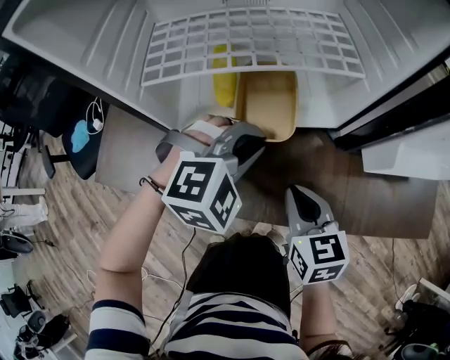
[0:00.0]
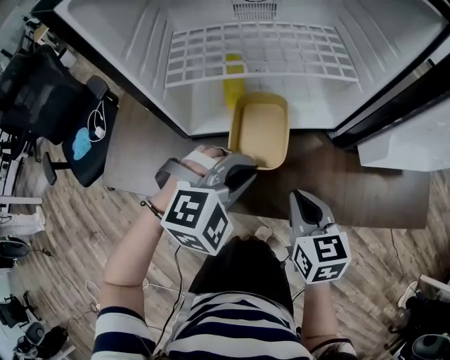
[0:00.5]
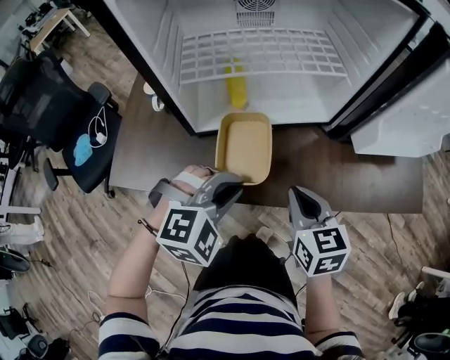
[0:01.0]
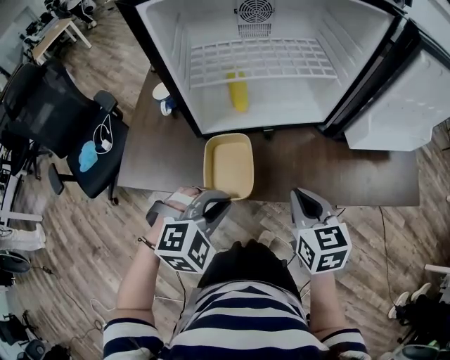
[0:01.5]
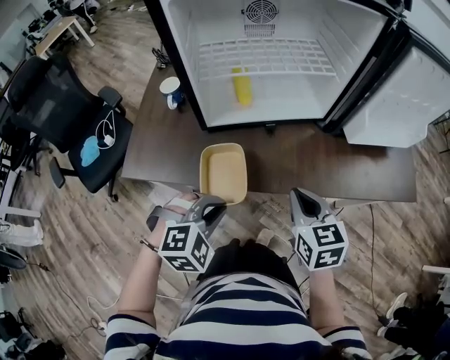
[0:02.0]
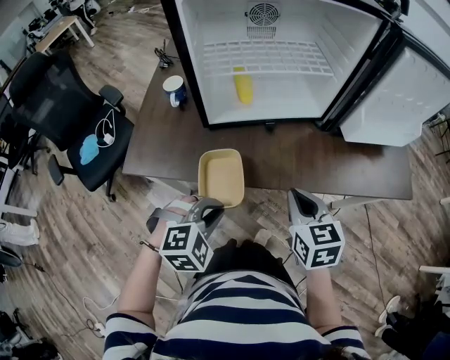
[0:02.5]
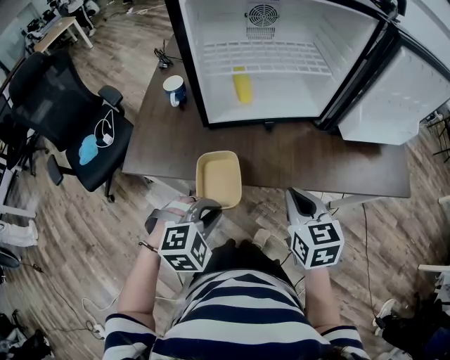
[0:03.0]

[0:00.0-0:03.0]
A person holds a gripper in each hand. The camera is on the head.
0:00.0 to 0:01.5: The left gripper moves backward and to the left, about 25 cm. The right gripper travels backward and upward by approximately 10 cm.
0:01.5 to 0:03.0: Both grippers move backward, roughly 5 cm.

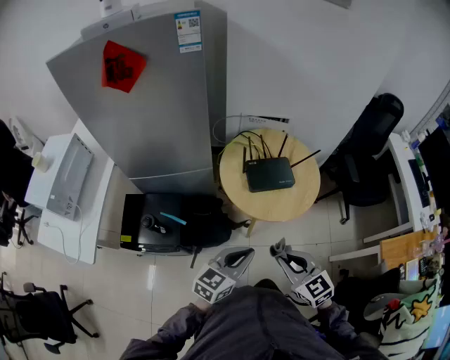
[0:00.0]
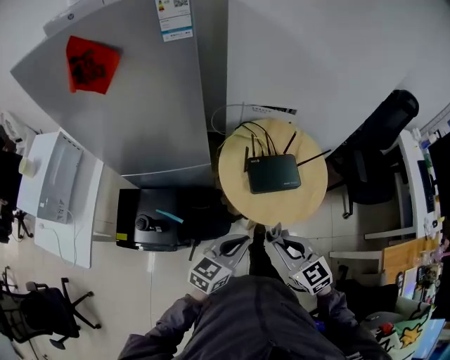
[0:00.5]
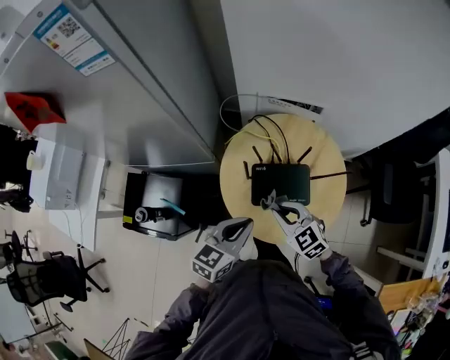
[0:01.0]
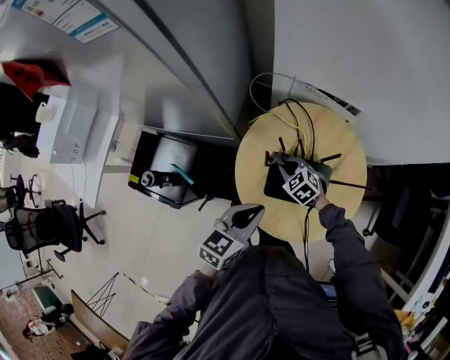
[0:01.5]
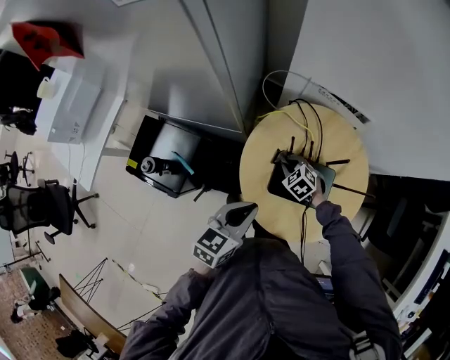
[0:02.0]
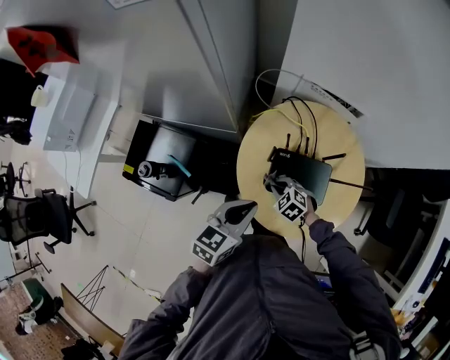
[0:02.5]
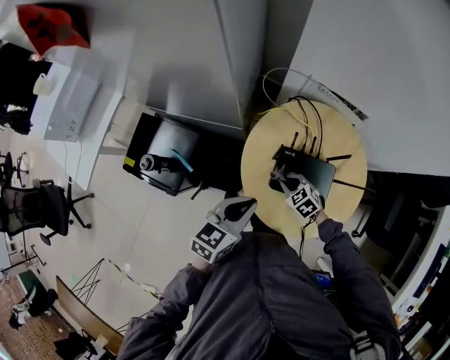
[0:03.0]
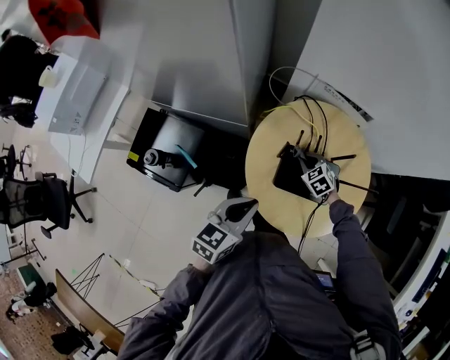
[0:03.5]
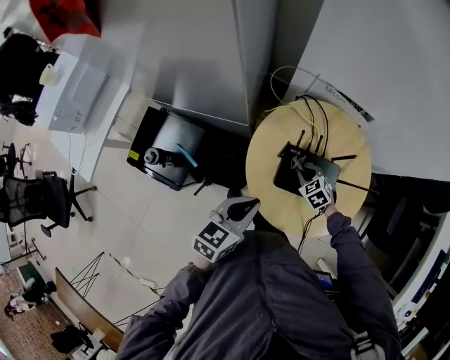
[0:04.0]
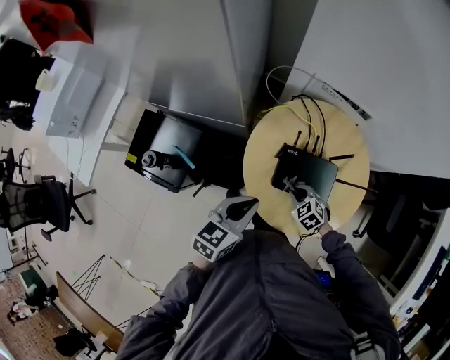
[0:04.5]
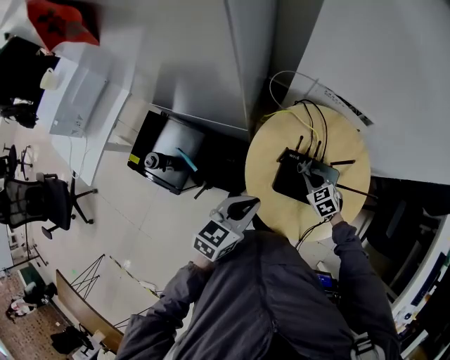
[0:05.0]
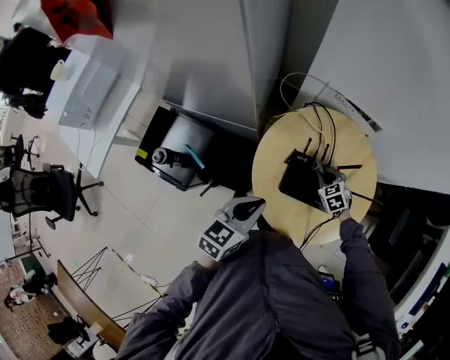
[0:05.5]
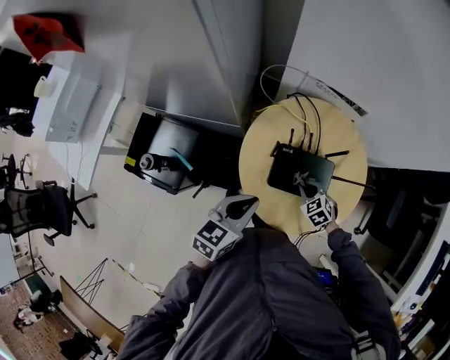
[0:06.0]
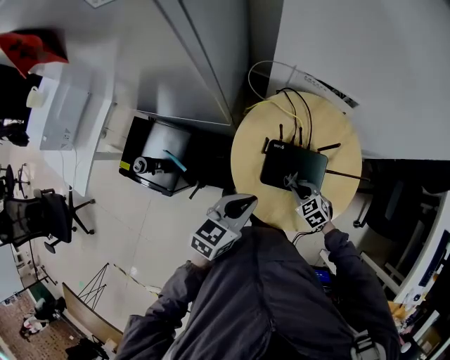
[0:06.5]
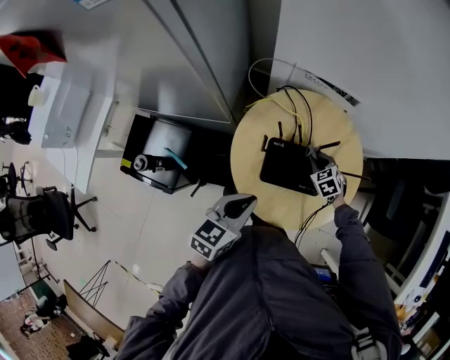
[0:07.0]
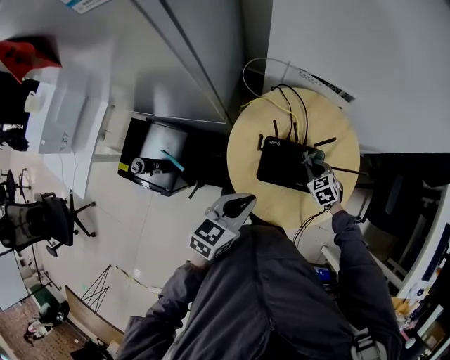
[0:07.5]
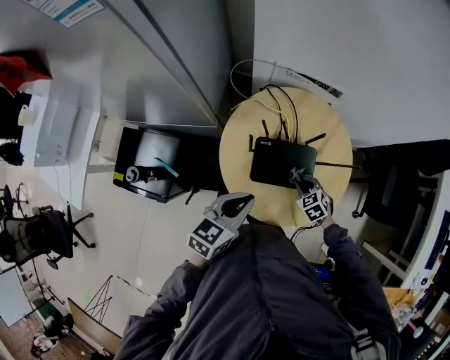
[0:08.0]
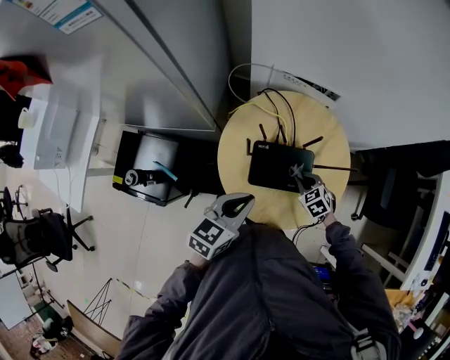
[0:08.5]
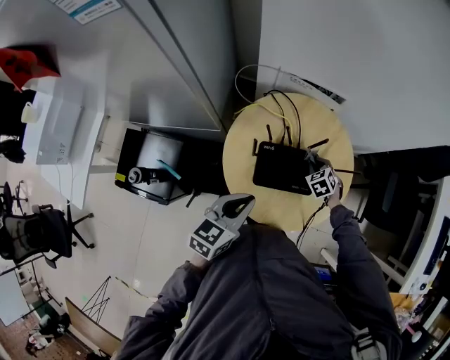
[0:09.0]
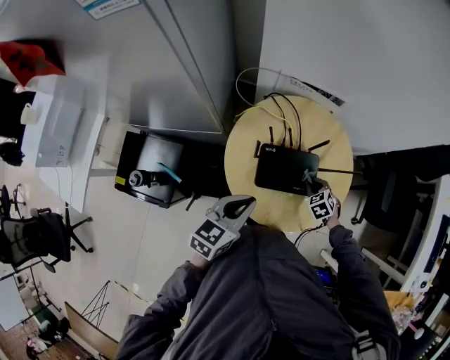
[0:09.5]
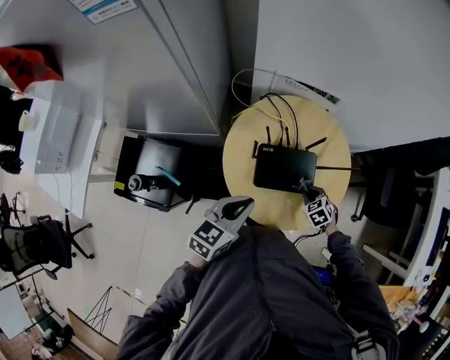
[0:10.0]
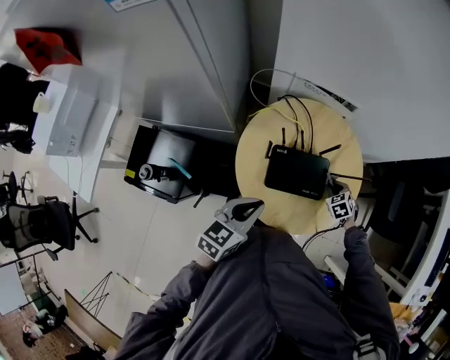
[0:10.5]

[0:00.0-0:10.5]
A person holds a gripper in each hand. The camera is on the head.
0:00.0 to 0:02.0: The right gripper ends up roughly 50 cm from where it was, and tilts its fingers some 30 degrees downward, while the left gripper ends up some 30 cm from where it was, and changes its angle by roughly 30 degrees.
0:02.0 to 0:04.0: The right gripper moves forward and backward over approximately 10 cm, changing direction 2 times.
0:04.0 to 0:06.5: The right gripper swings forward and backward, approximately 10 cm each way, with 2 reversals.
0:06.5 to 0:08.5: The right gripper goes some 5 cm to the right, and reaches approximately 10 cm forward, then returns.
0:08.5 to 0:10.5: The right gripper goes forward and backward, roughly 10 cm each way, reversing 2 times.

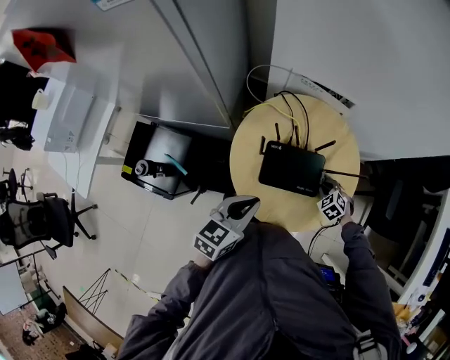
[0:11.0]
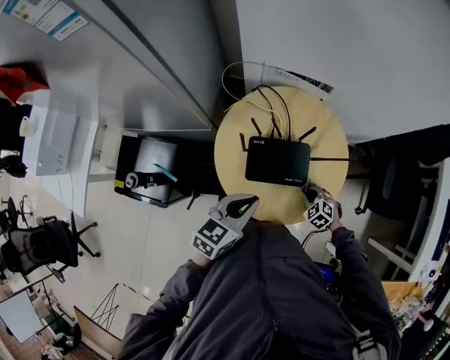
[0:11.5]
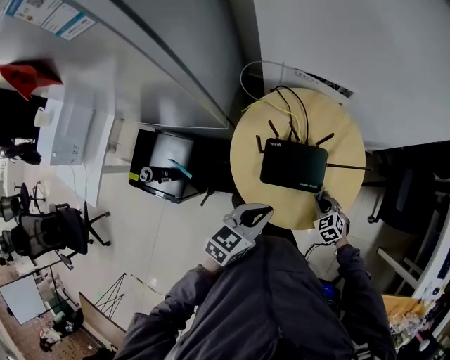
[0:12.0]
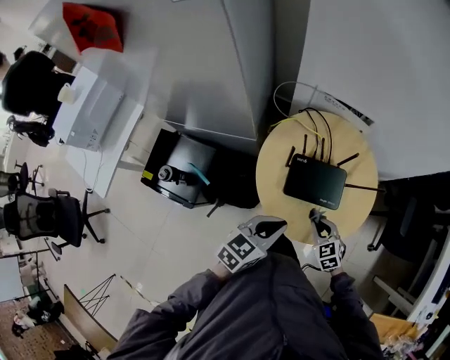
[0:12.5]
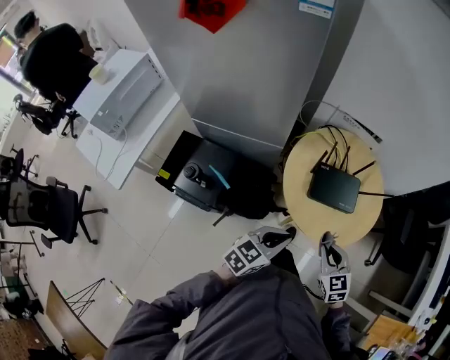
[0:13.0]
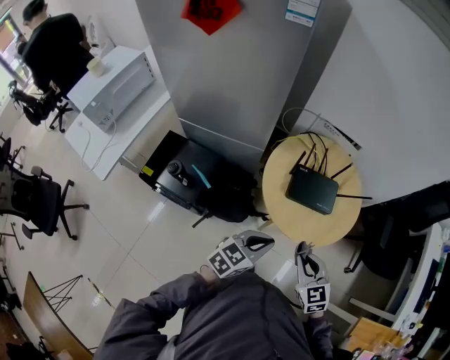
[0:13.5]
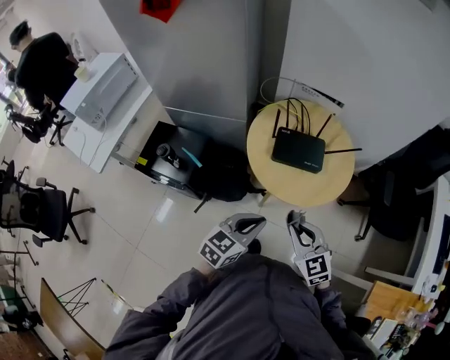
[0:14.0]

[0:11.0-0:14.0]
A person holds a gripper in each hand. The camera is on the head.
0:11.0 to 0:12.5: The right gripper moves backward, to the left and upward, roughly 20 cm, and changes its angle by roughly 20 degrees.
0:12.5 to 0:14.0: The right gripper heads backward and upward, covering approximately 25 cm, and swivels roughly 20 degrees. Meanwhile the left gripper goes approximately 15 cm backward.

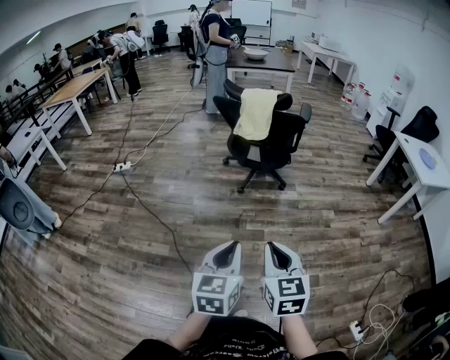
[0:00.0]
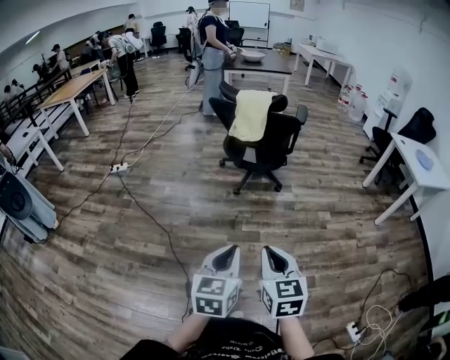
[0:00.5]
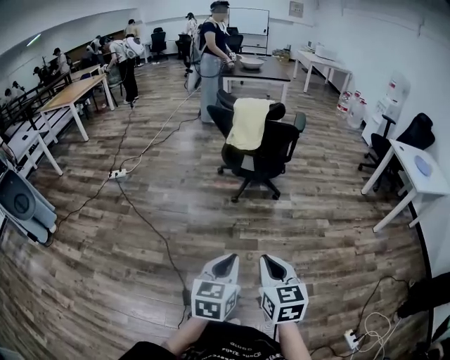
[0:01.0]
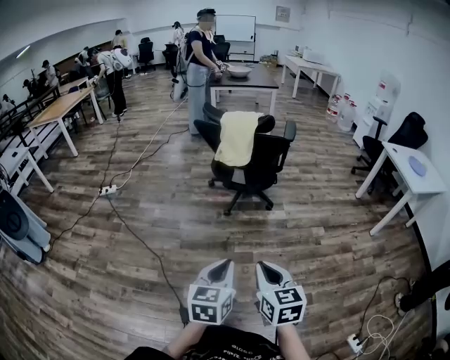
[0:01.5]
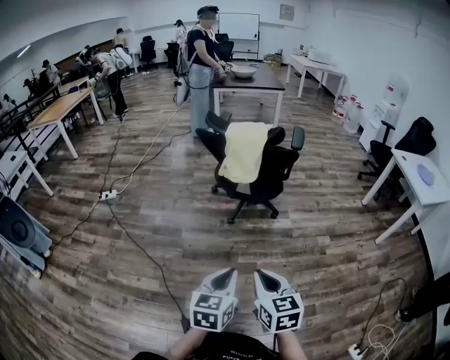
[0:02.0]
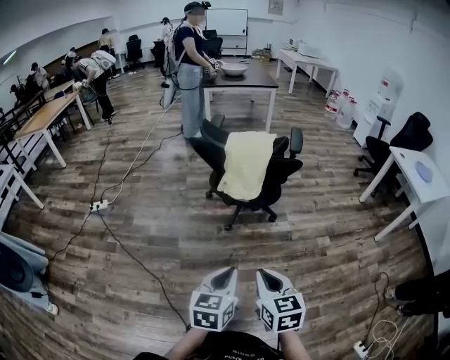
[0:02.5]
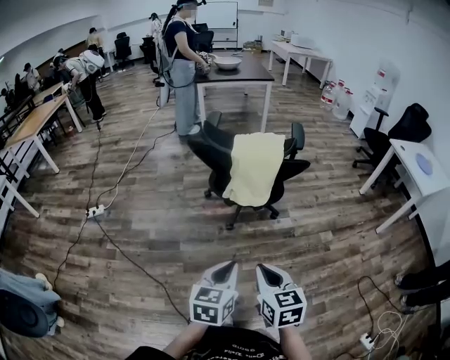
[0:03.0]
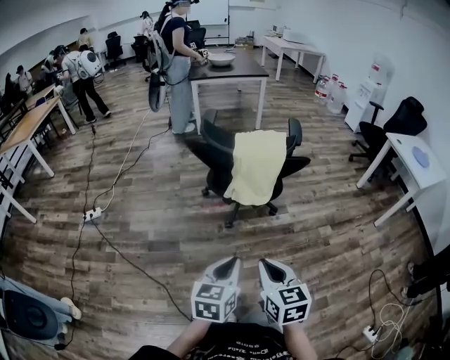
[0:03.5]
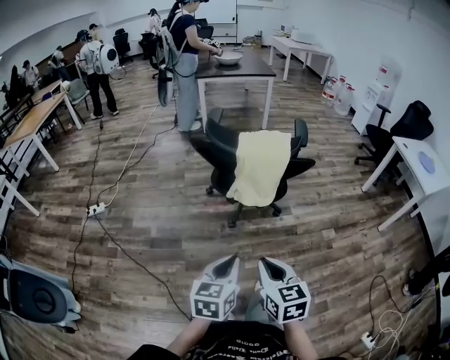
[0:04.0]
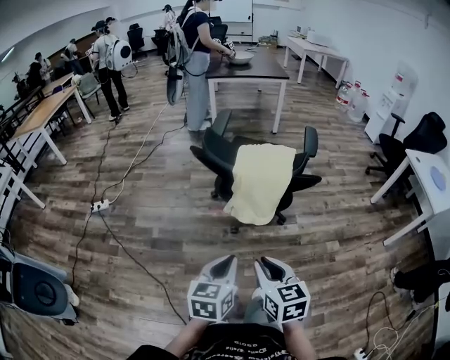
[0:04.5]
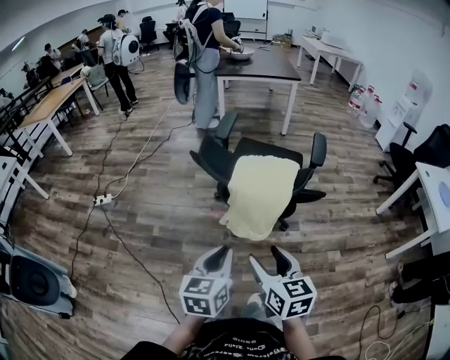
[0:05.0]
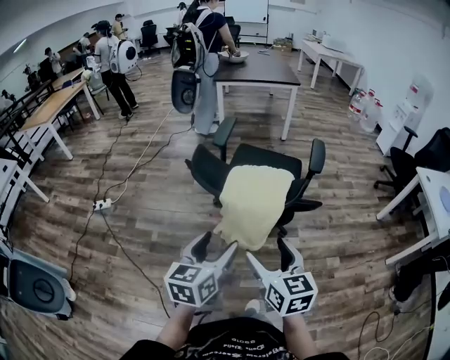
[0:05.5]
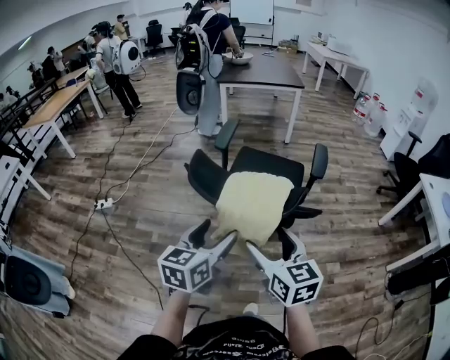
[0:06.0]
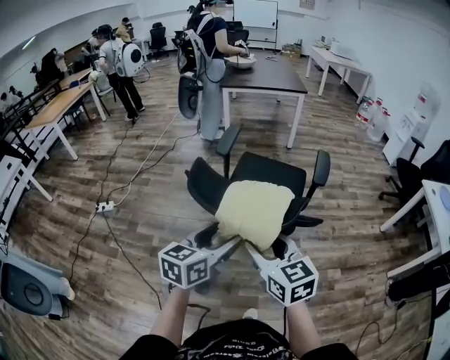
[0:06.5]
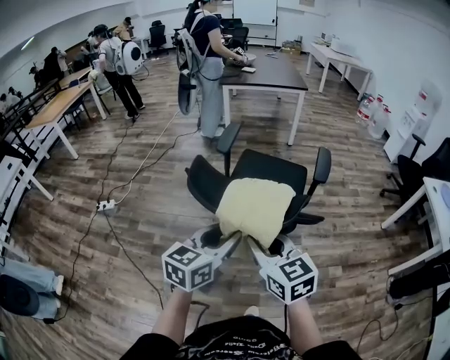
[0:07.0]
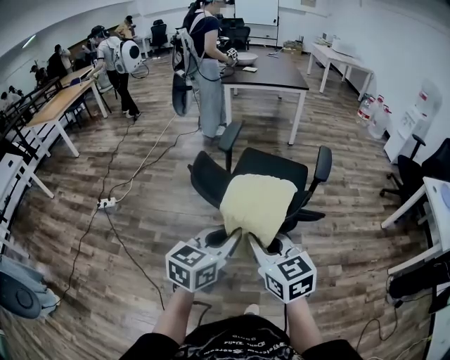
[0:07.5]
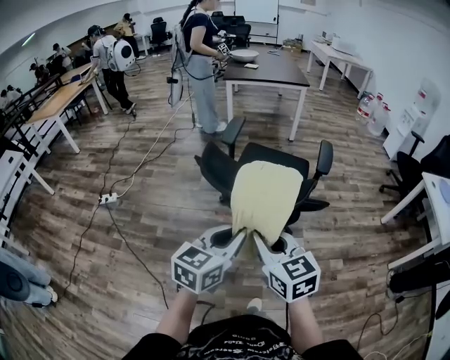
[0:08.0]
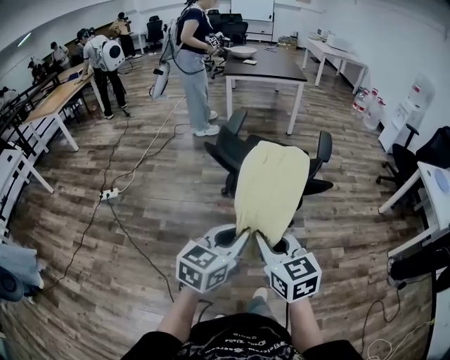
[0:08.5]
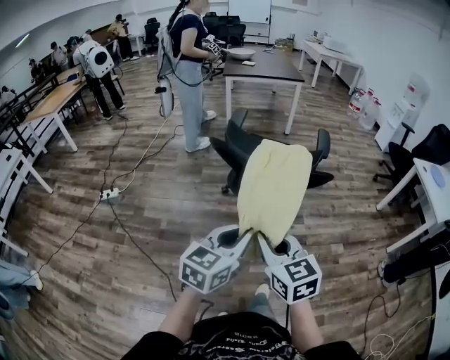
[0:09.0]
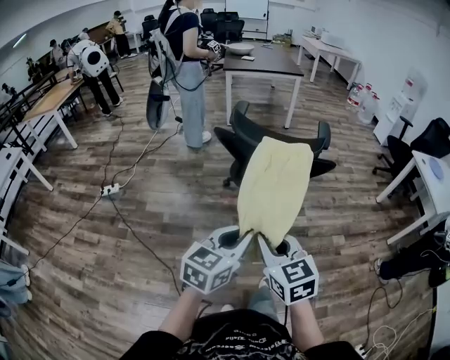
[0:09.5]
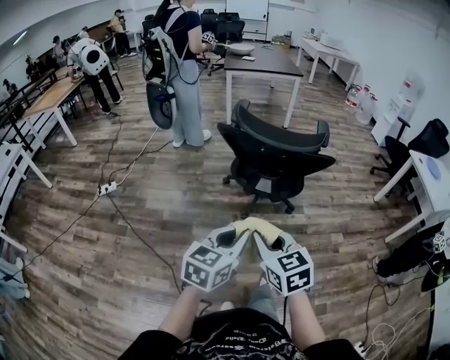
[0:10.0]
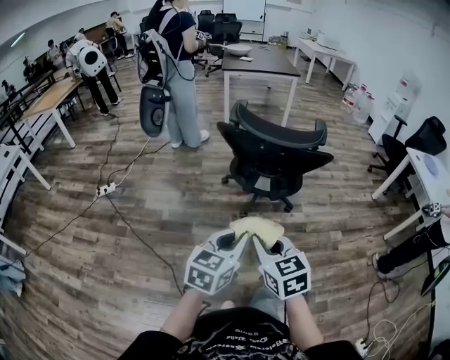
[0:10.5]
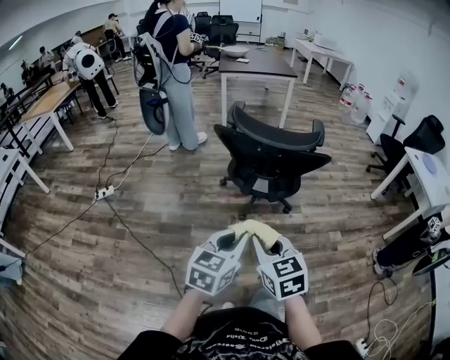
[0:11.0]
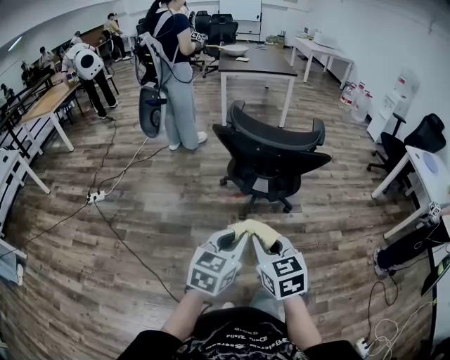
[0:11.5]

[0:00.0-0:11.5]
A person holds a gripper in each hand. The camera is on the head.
0:00.0 to 0:02.0: The two grippers go approximately 15 cm forward.
0:02.0 to 0:04.0: The grippers both shift forward and to the left by roughly 20 cm.
0:04.0 to 0:06.0: The right gripper moves forward, about 20 cm, and opens. Meanwhile the left gripper goes some 25 cm forward and upward, and opens its fingers.
0:06.0 to 0:07.5: The right gripper closes up. The left gripper closes its fingers.
0:07.5 to 0:09.5: The grippers both shift backward by about 20 cm.
0:09.5 to 0:11.5: There are only small adjustments of the grippers.
